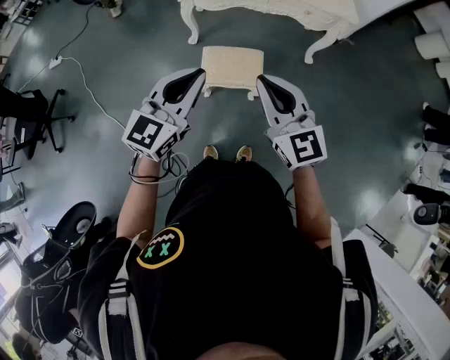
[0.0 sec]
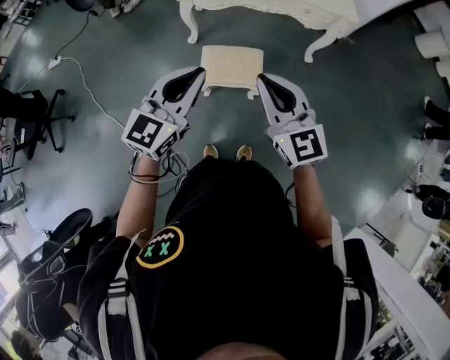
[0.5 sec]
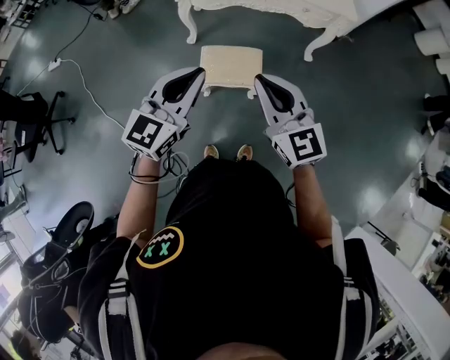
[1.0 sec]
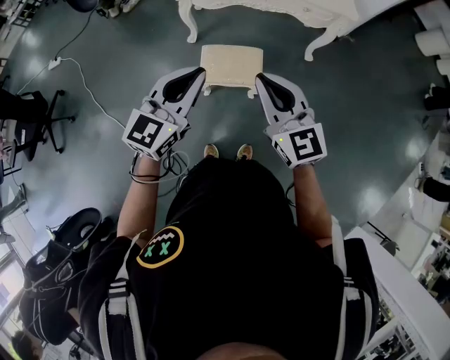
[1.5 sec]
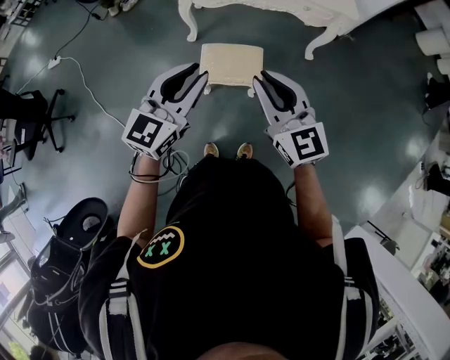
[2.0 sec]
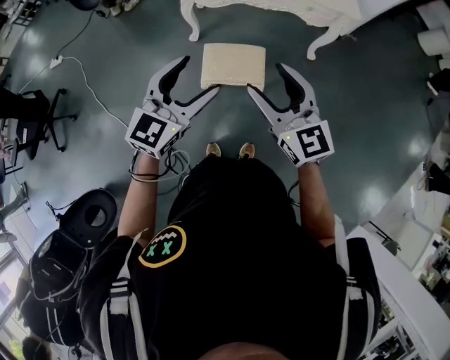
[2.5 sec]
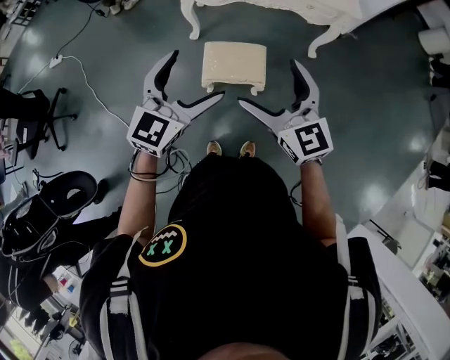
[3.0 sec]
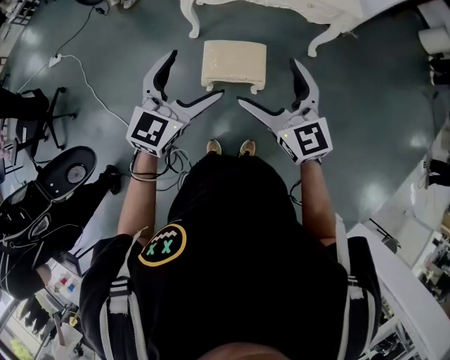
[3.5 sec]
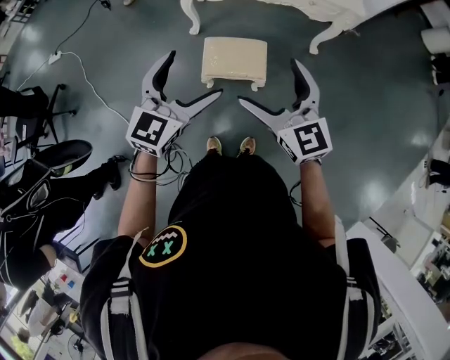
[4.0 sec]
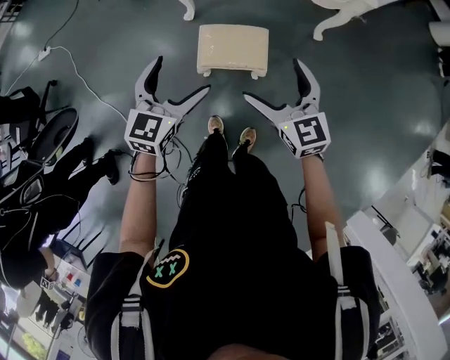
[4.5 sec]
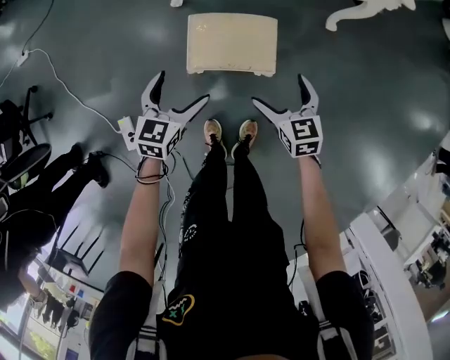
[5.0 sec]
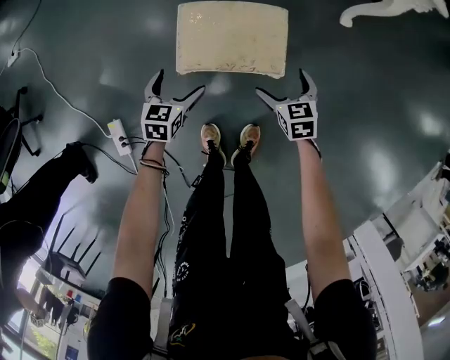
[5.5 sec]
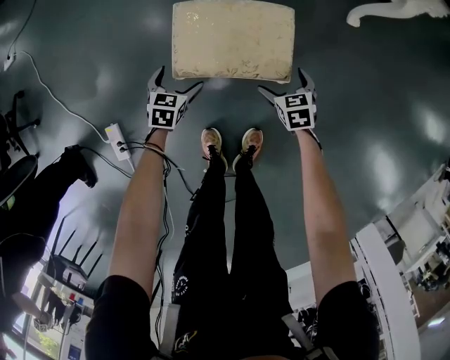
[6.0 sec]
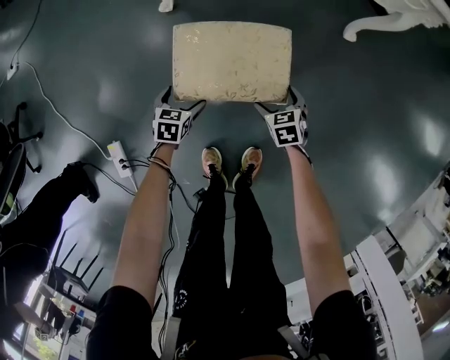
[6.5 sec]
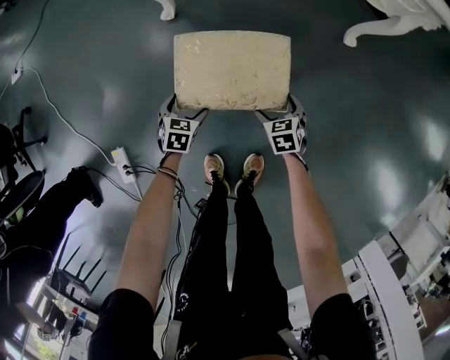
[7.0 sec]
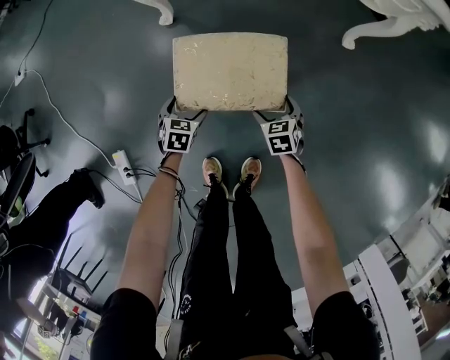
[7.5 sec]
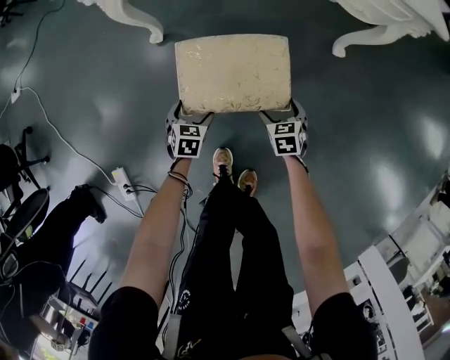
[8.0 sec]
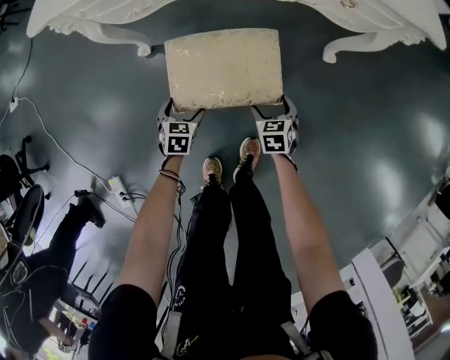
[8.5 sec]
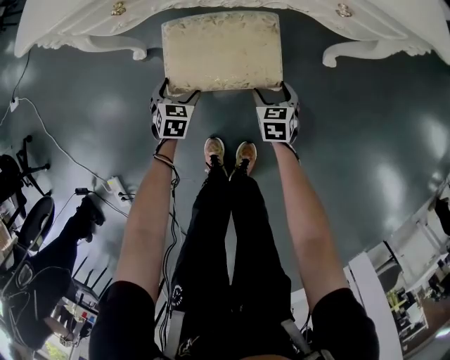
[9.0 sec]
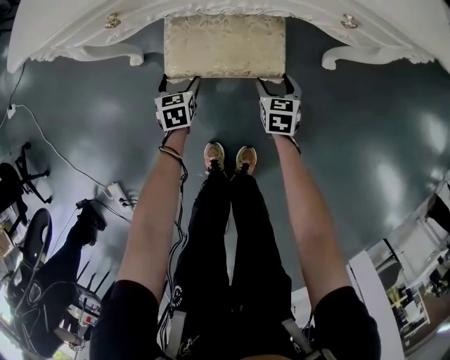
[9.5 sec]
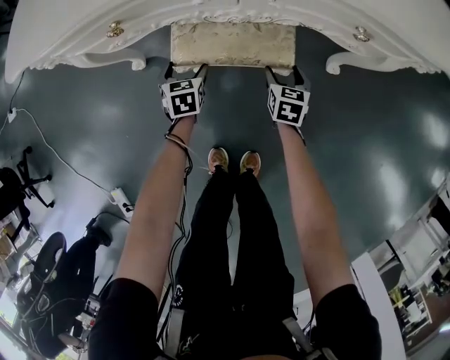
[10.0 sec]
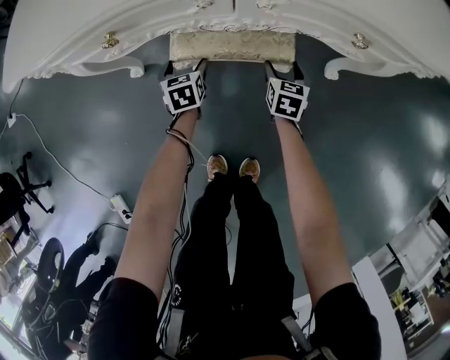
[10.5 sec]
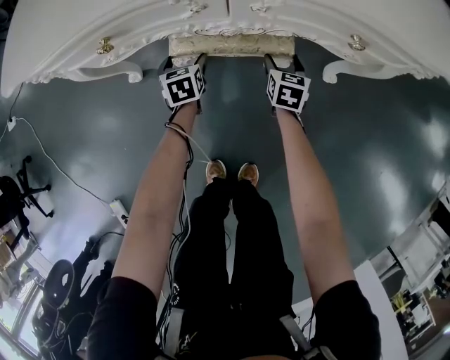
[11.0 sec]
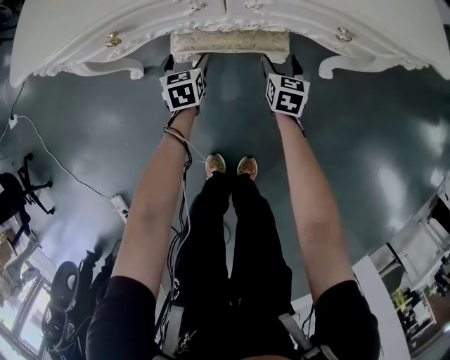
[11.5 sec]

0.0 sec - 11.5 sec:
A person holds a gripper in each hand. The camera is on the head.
0.0 sec - 2.0 sec: Both grippers stay put.
2.0 sec - 4.0 sec: The left gripper opens; the right gripper opens its fingers.
4.0 sec - 6.0 sec: Both grippers move downward, roughly 70 cm. The right gripper angles its fingers downward, by some 50 degrees, while the left gripper points its fingers about 40 degrees further downward.
6.0 sec - 7.5 sec: The grippers make only small movements.
7.5 sec - 9.5 sec: The left gripper is displaced forward by about 30 cm, while the right gripper is displaced forward and to the right by roughly 30 cm, and turns by some 20 degrees.
9.5 sec - 11.5 sec: Both grippers move forward, about 10 cm.

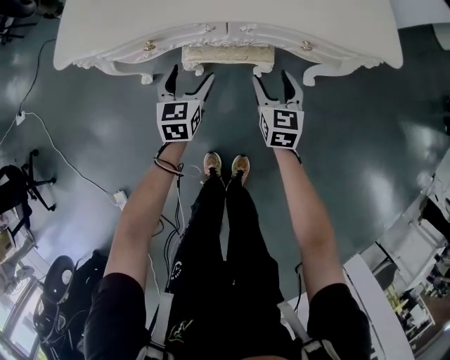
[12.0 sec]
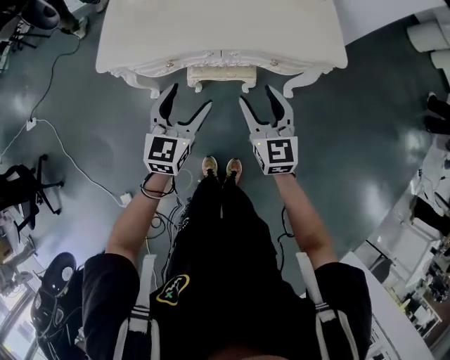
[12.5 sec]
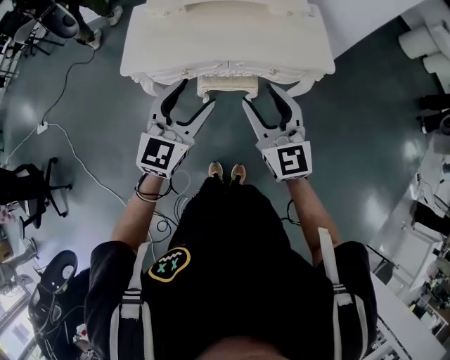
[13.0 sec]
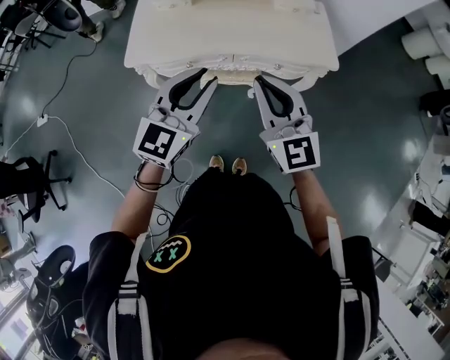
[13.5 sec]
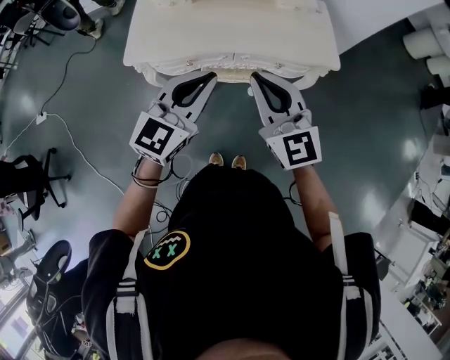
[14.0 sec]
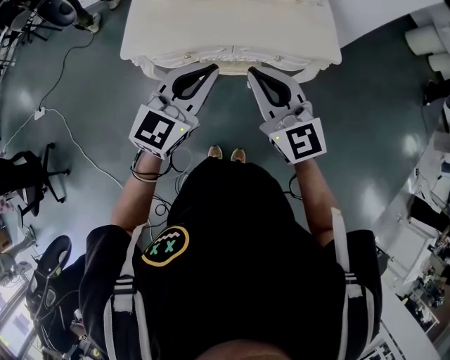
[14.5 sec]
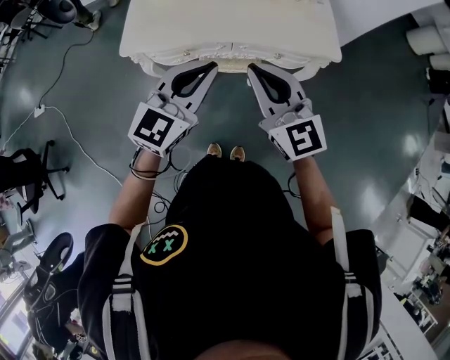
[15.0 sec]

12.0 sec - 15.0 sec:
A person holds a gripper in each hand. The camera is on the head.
12.0 sec - 13.5 sec: The two grippers go approximately 50 cm upward. The right gripper changes its angle by some 40 degrees, and closes up. The left gripper changes its angle by approximately 40 degrees, and closes up.
13.5 sec - 15.0 sec: The grippers make only small movements.

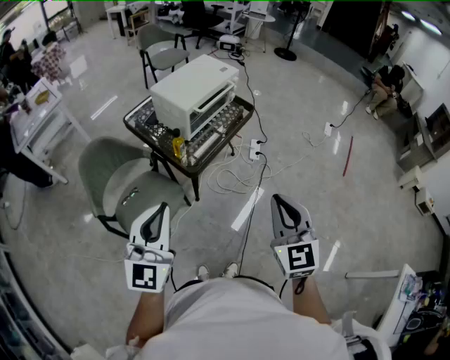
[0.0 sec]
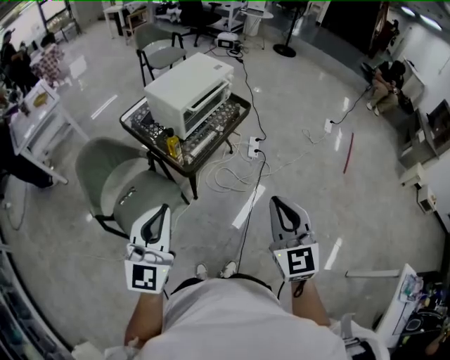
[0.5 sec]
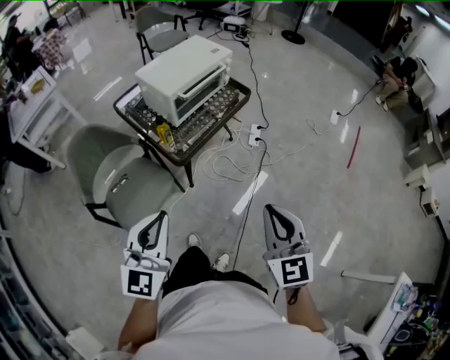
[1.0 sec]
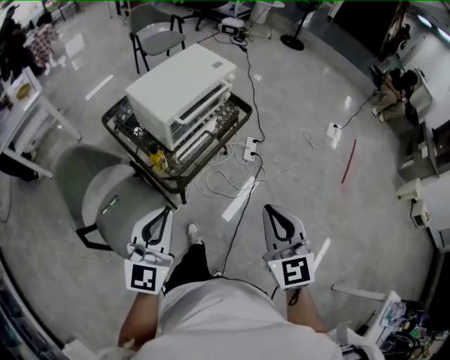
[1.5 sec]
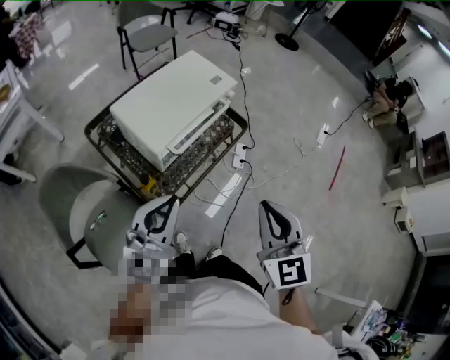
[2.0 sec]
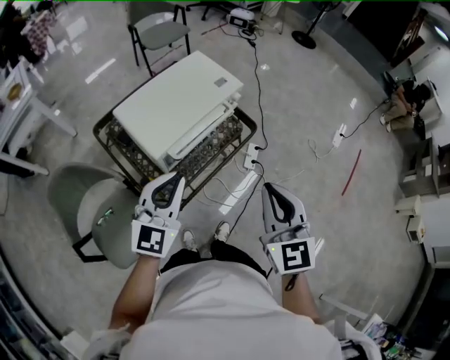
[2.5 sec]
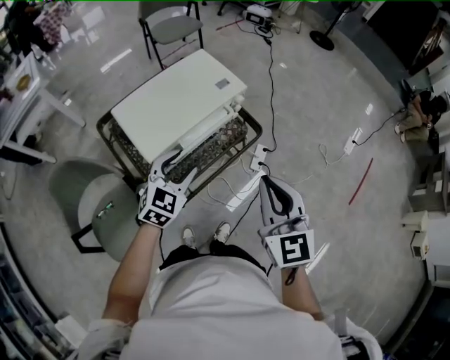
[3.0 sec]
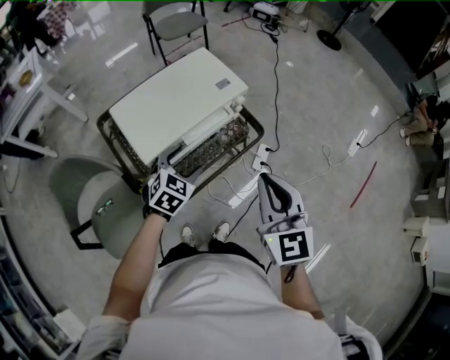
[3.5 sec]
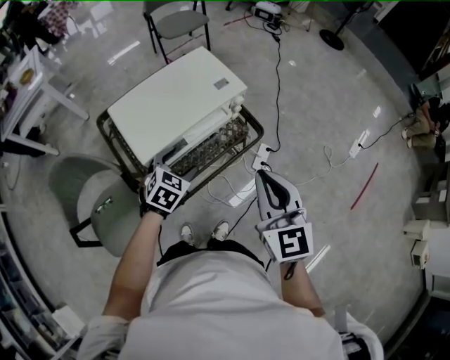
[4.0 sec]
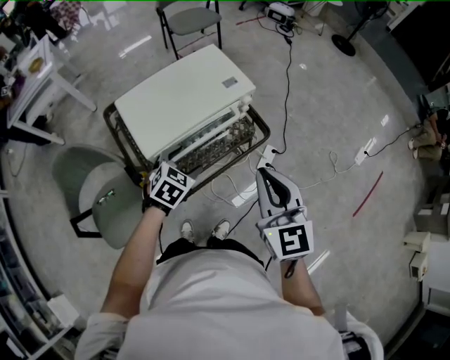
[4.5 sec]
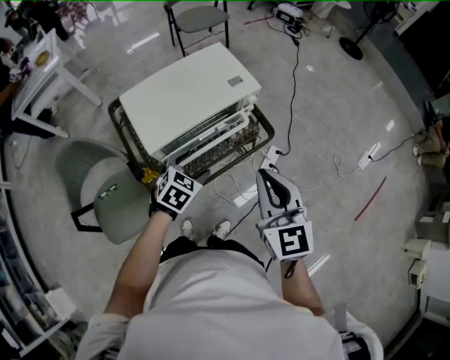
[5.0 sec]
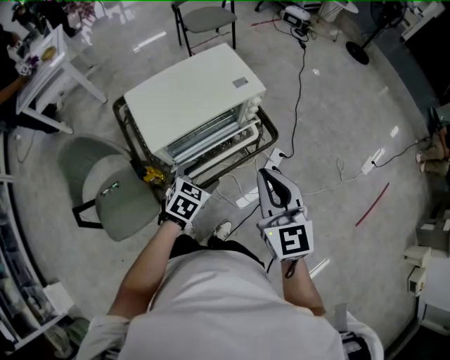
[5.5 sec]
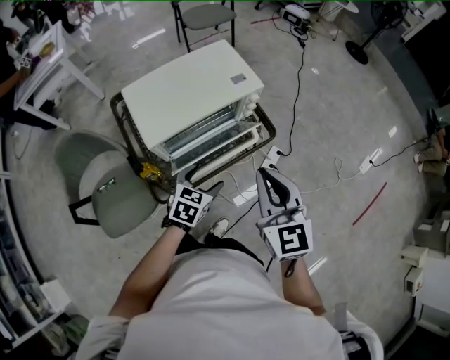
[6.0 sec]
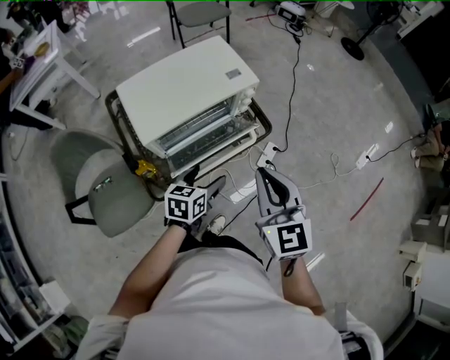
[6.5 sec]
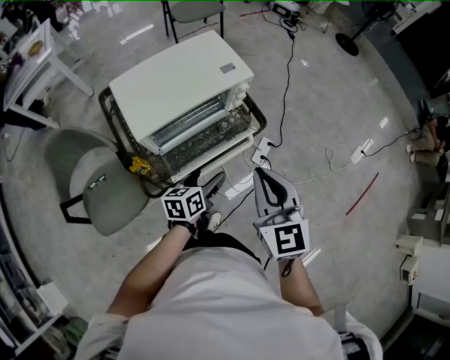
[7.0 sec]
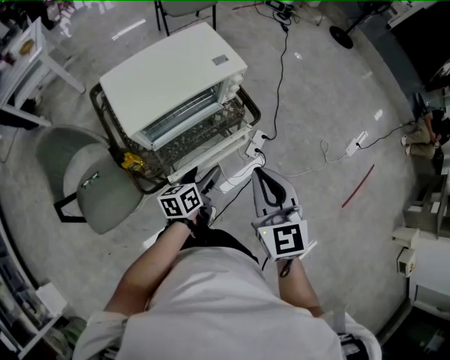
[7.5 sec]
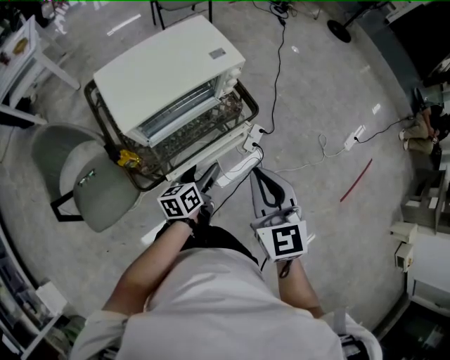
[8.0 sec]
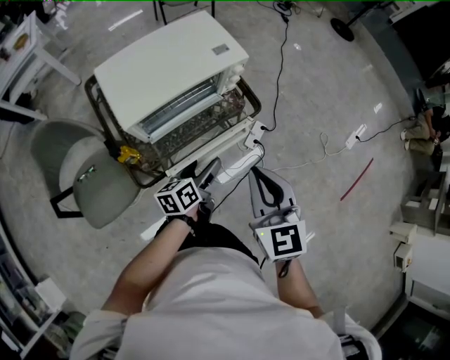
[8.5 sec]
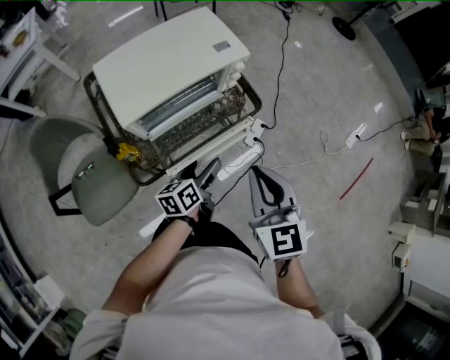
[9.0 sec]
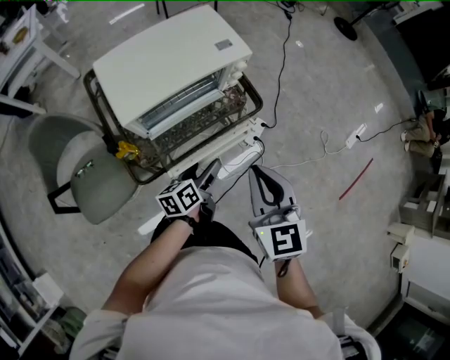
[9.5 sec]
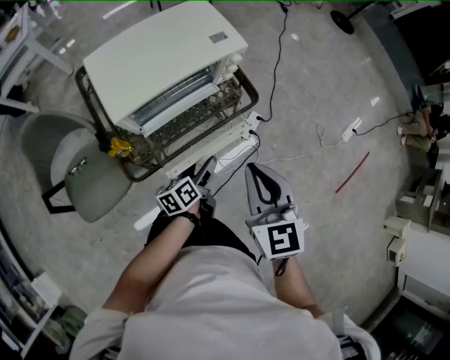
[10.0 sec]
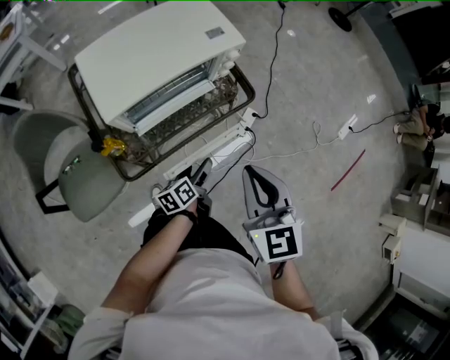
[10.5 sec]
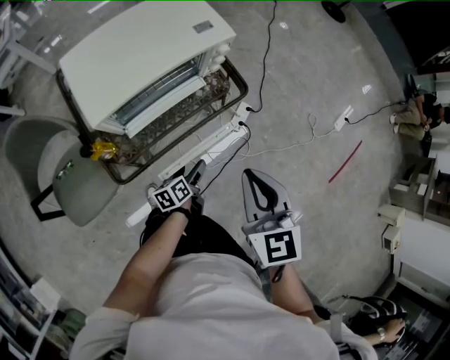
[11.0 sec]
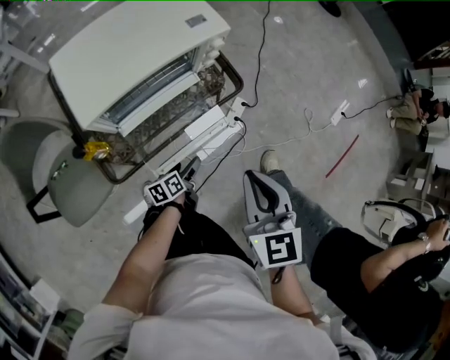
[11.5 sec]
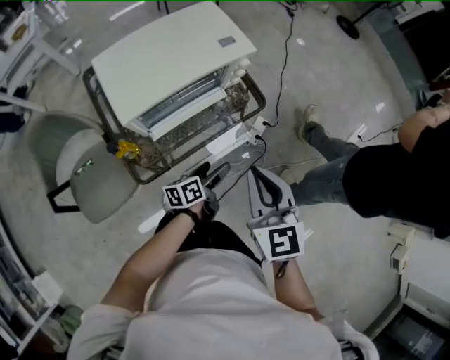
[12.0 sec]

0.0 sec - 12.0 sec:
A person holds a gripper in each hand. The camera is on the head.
0.0 sec - 2.0 sec: The two grippers go roughly 35 cm forward.
2.0 sec - 4.0 sec: The right gripper heads forward, covering about 15 cm, while the left gripper goes approximately 25 cm forward and downward, angles its fingers downward, by approximately 50 degrees, and opens up.
4.0 sec - 6.0 sec: The left gripper travels to the right and backward by some 10 cm, and turns by some 20 degrees.
6.0 sec - 8.0 sec: The right gripper moves some 5 cm, while the left gripper changes place by roughly 5 cm, and twists some 40 degrees counterclockwise, seen from behind.
8.0 sec - 10.0 sec: The left gripper moves some 5 cm.
10.0 sec - 12.0 sec: The left gripper reaches about 15 cm downward, then returns.
